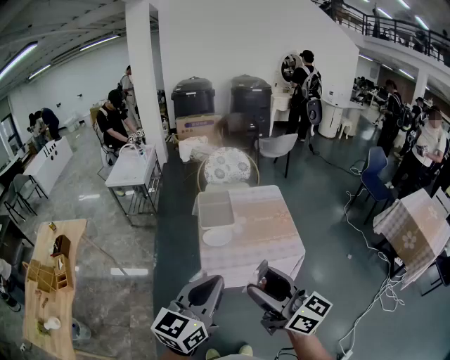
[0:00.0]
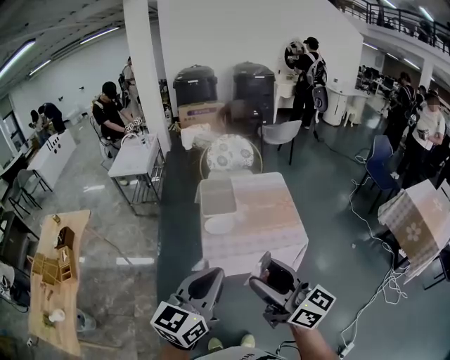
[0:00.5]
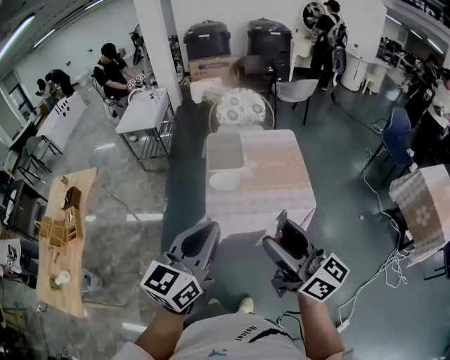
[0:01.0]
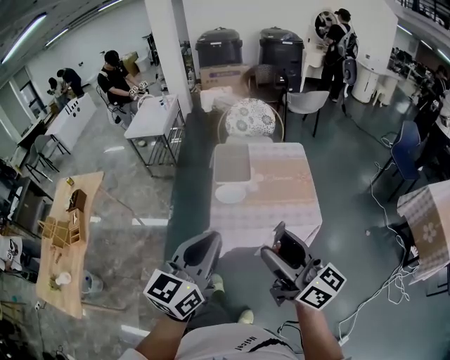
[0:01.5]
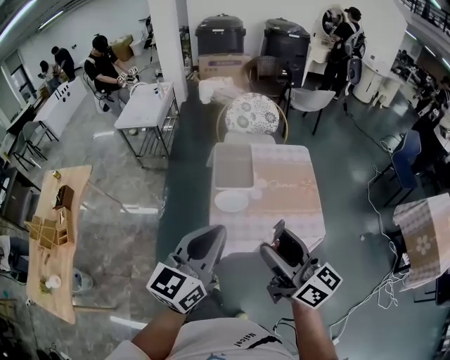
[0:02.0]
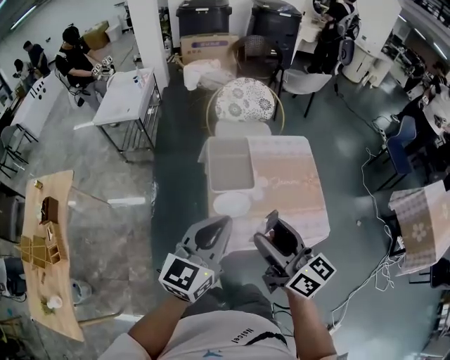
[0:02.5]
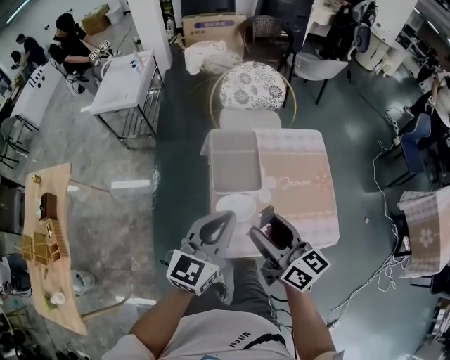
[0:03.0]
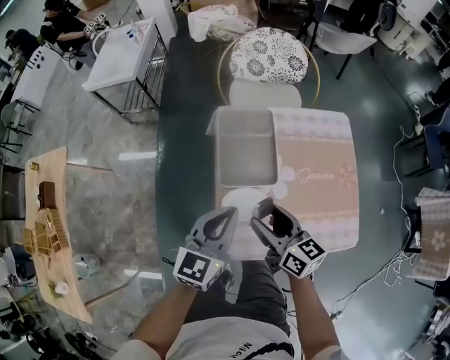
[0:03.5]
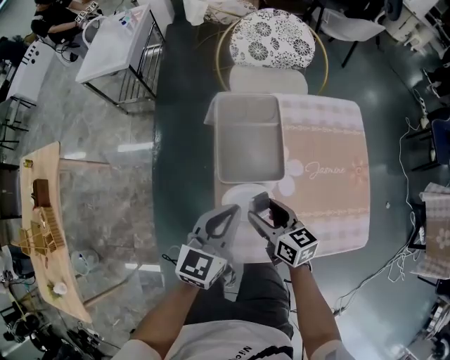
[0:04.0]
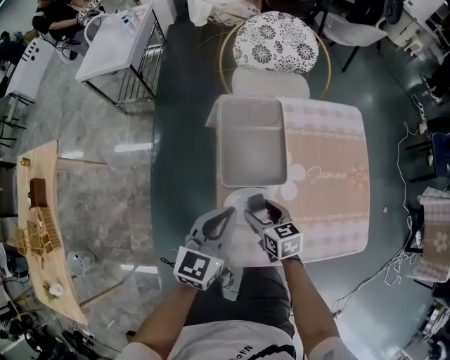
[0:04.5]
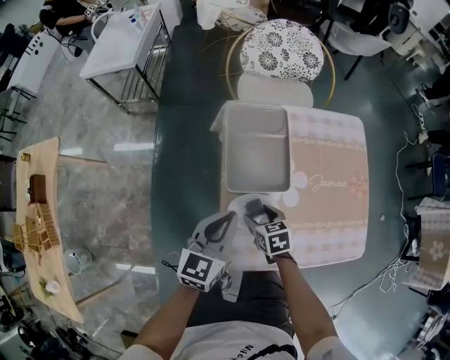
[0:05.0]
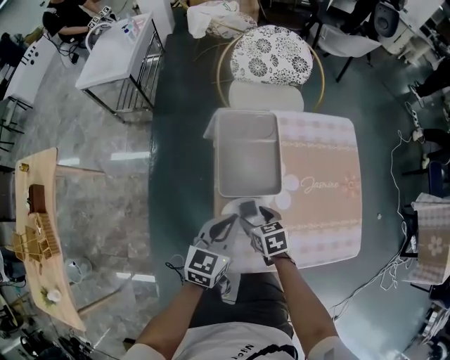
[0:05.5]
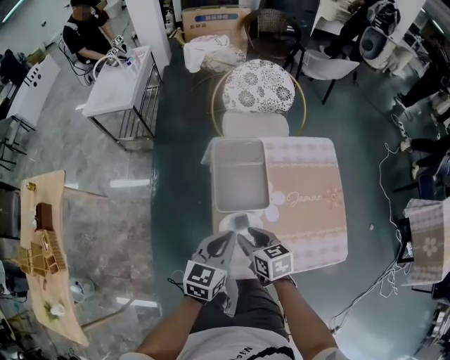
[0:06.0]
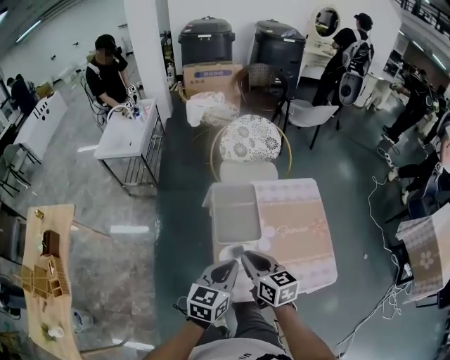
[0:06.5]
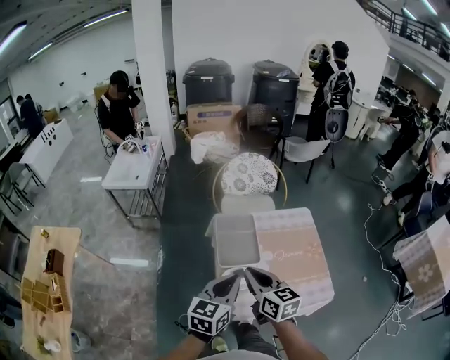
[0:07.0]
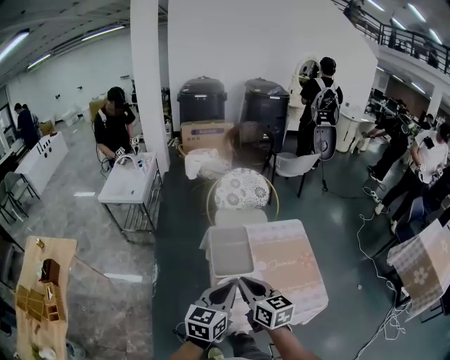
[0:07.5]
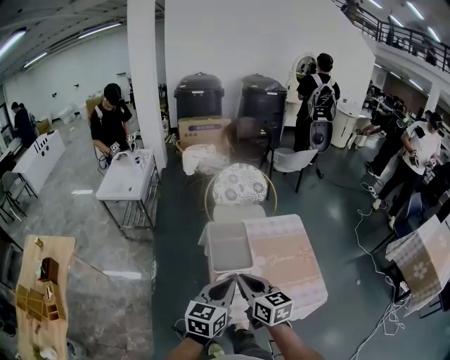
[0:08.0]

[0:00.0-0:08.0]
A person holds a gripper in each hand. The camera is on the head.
0:00.0 to 0:02.0: Both grippers travel together forward, about 15 cm.
0:02.0 to 0:04.0: The grippers both shift downward and forward by approximately 50 cm. The right gripper tilts its fingers approximately 40 degrees downward.
0:04.0 to 0:06.0: The right gripper heads upward, covering roughly 5 cm, and closes its fingers.
0:06.0 to 0:08.0: The right gripper moves upward, approximately 25 cm, turns by roughly 30 degrees, and closes. The left gripper travels upward and backward by about 20 cm.

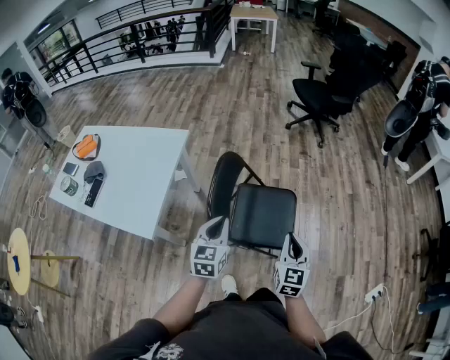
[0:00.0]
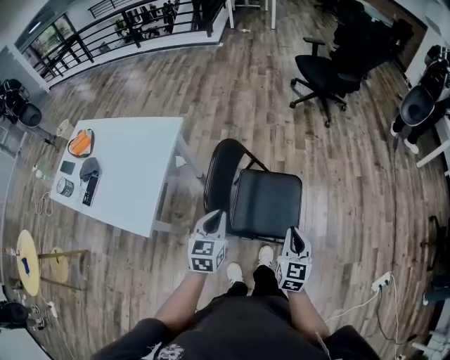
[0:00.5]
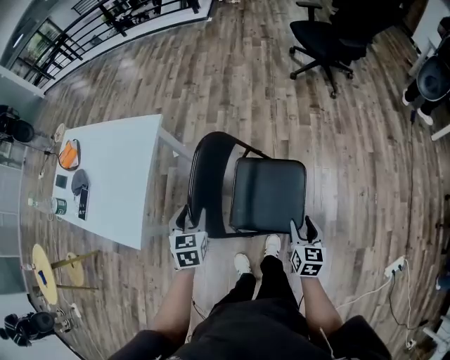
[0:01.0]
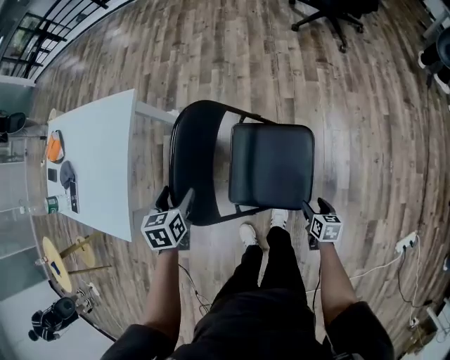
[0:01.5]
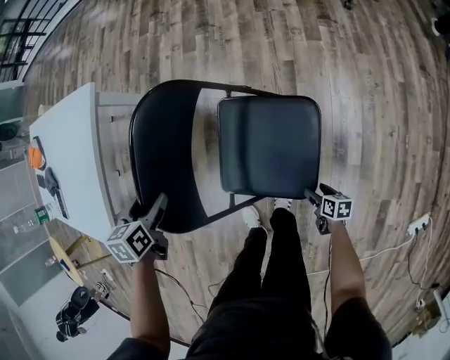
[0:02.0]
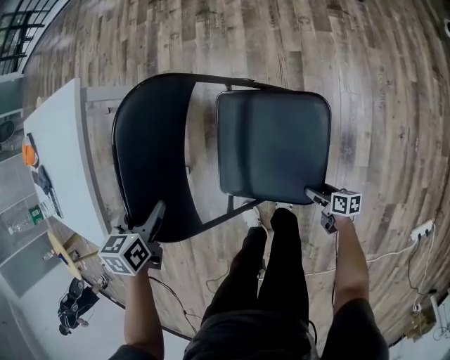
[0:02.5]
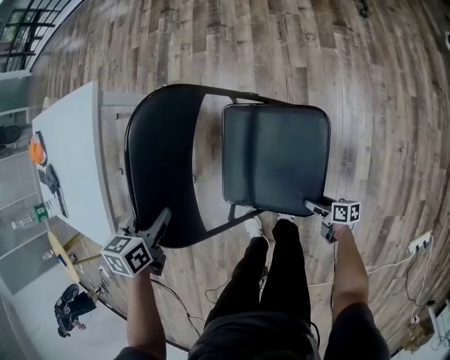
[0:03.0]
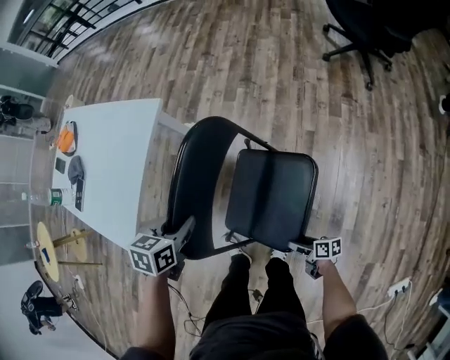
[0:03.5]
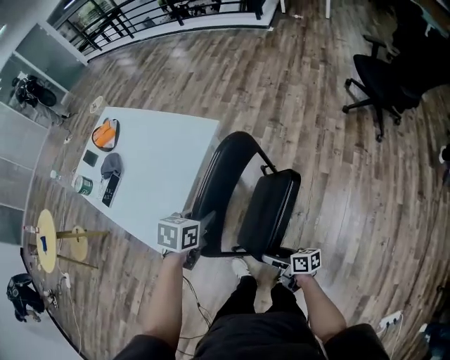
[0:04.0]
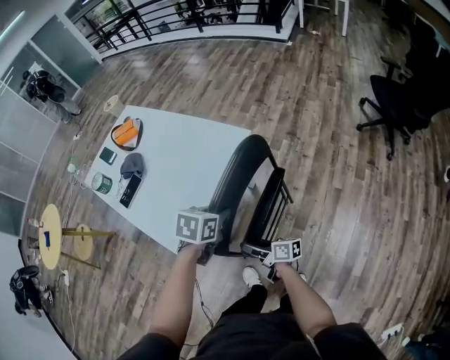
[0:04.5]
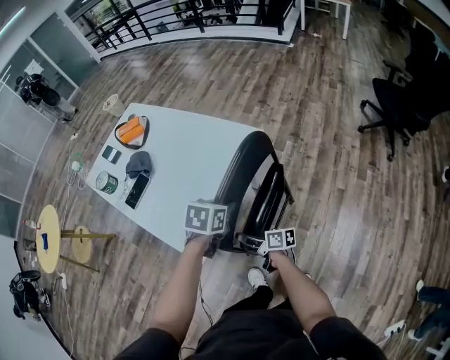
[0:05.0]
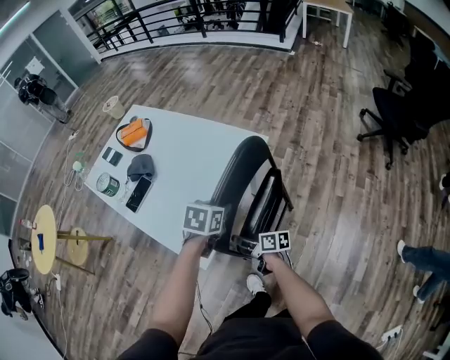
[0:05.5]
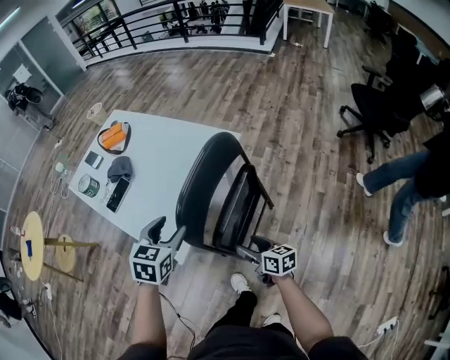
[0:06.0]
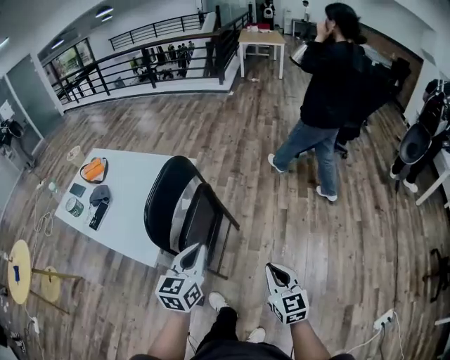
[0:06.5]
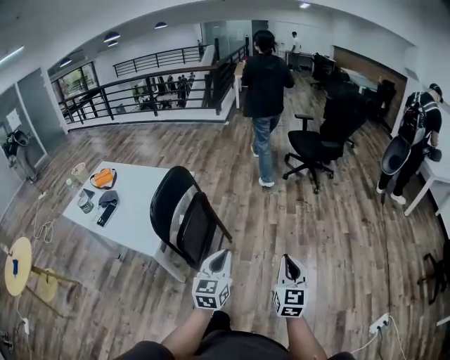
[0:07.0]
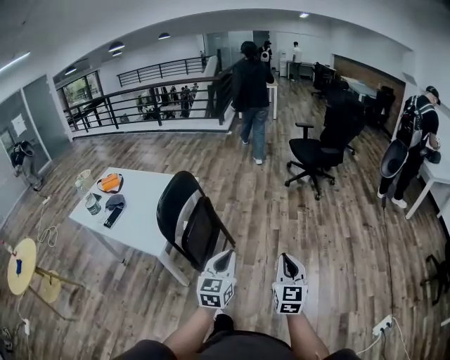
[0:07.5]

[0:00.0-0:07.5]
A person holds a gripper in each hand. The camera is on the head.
0:00.0 to 0:02.0: The left gripper shifts about 25 cm downward, tilts its fingers approximately 40 degrees downward, and opens its fingers, while the right gripper heads downward, covering about 60 cm, angles its fingers downward, by some 40 degrees, and opens its fingers.
0:02.0 to 0:04.0: The right gripper goes roughly 50 cm upward, to the left and forward, and tilts its fingers about 30 degrees upward. The left gripper shifts about 20 cm upward and to the left, and closes up.
0:04.0 to 0:05.5: The left gripper goes some 20 cm to the left and forward. The right gripper heads to the left and forward, covering some 35 cm.
0:05.5 to 0:07.5: The two grippers travel together, approximately 50 cm. The left gripper tips its fingers upward by about 50 degrees, and opens, then closes once more. The right gripper turns by about 90 degrees, and closes.

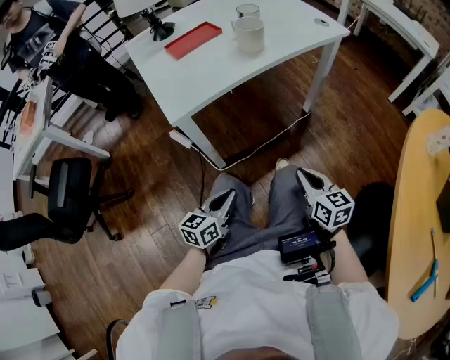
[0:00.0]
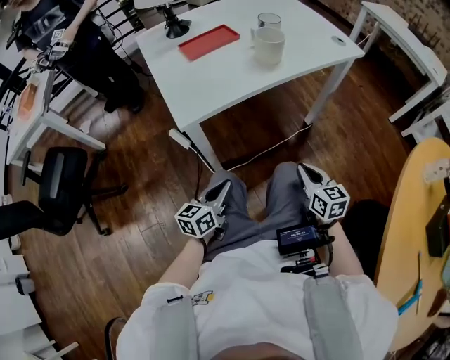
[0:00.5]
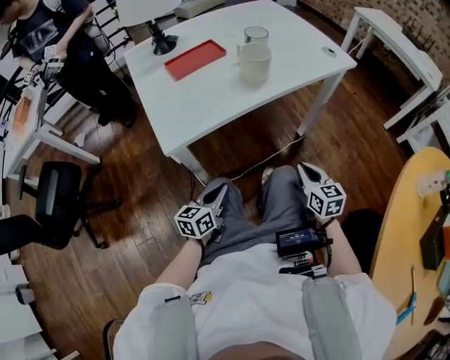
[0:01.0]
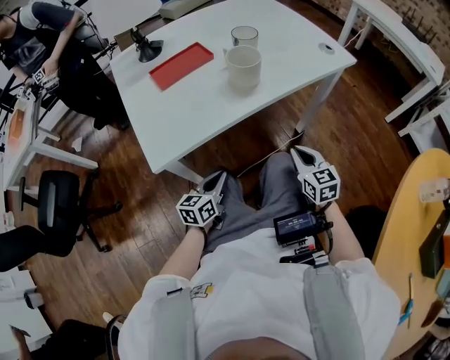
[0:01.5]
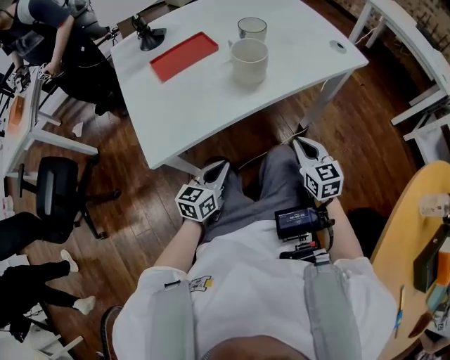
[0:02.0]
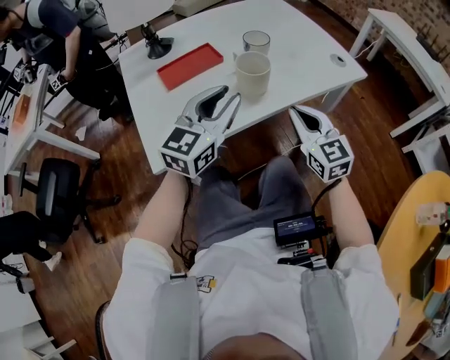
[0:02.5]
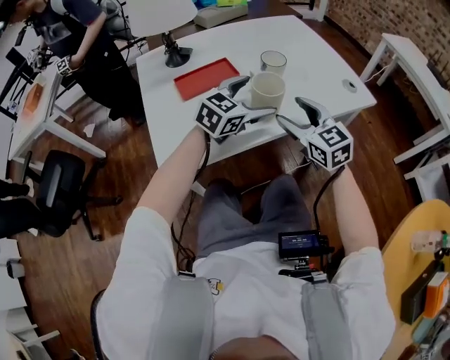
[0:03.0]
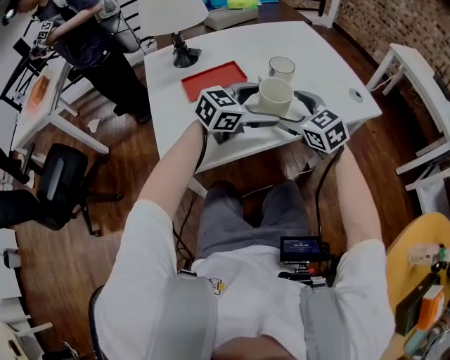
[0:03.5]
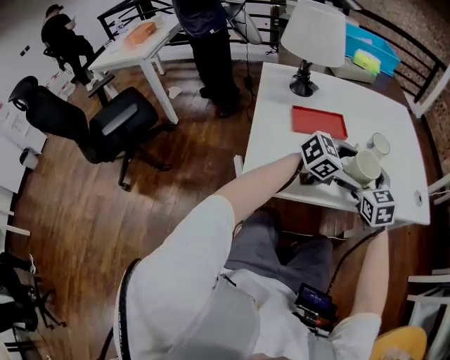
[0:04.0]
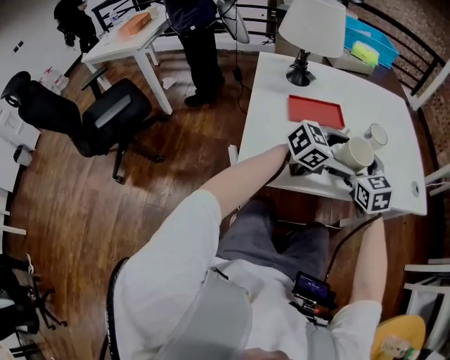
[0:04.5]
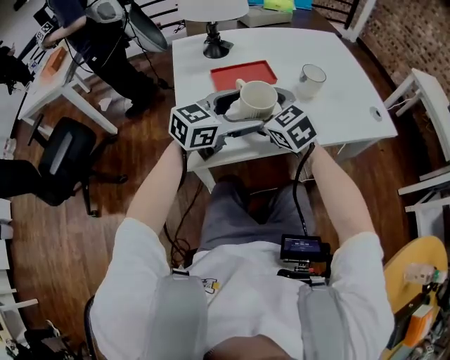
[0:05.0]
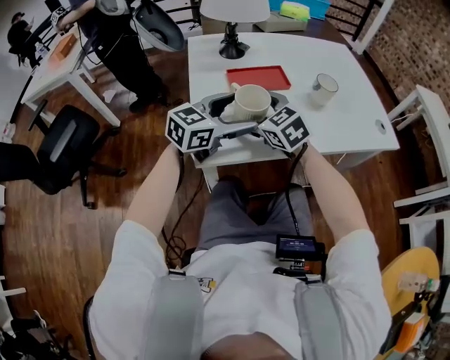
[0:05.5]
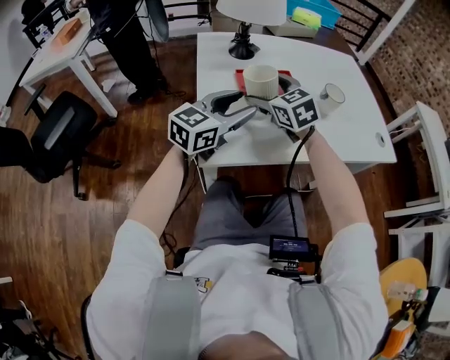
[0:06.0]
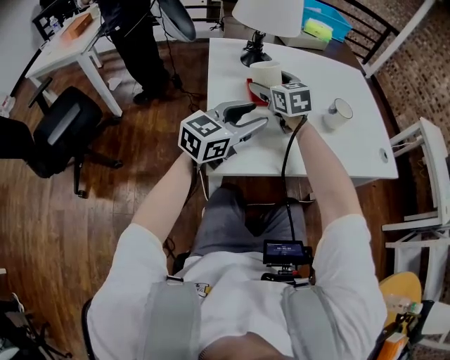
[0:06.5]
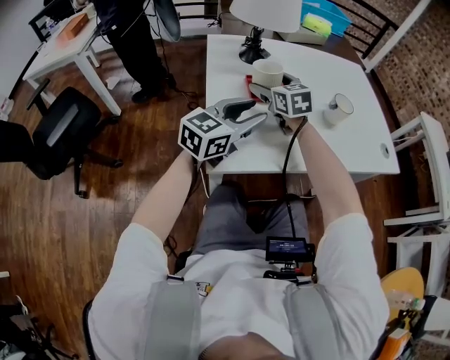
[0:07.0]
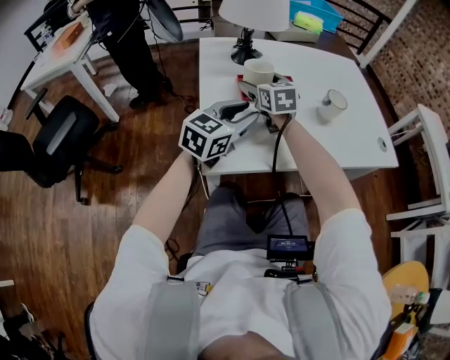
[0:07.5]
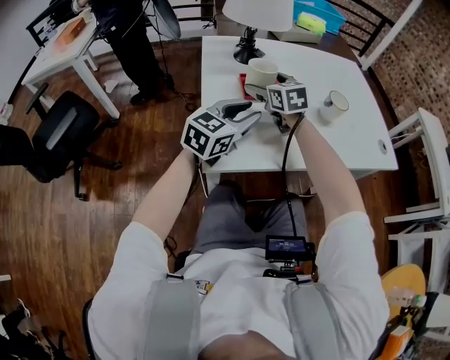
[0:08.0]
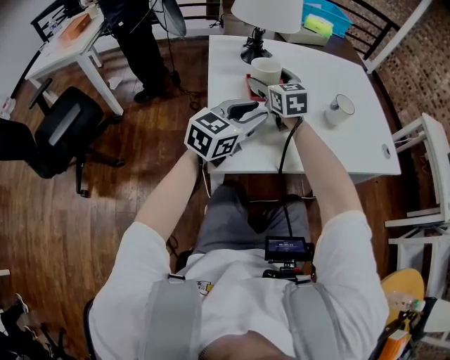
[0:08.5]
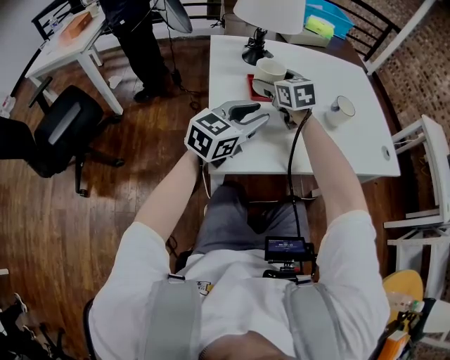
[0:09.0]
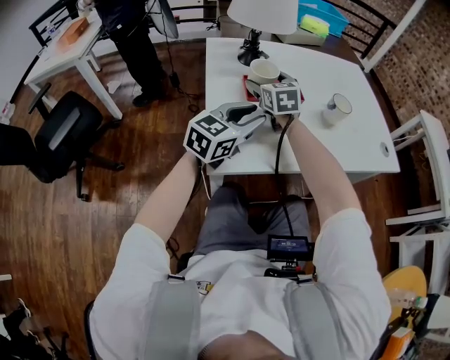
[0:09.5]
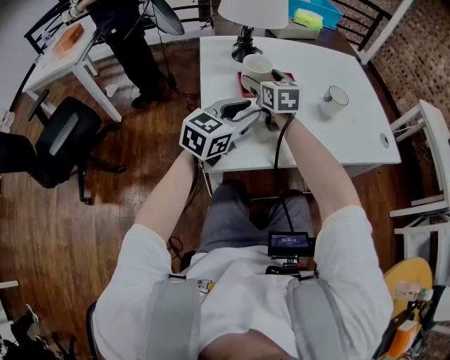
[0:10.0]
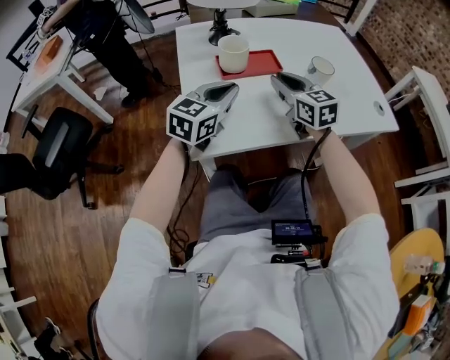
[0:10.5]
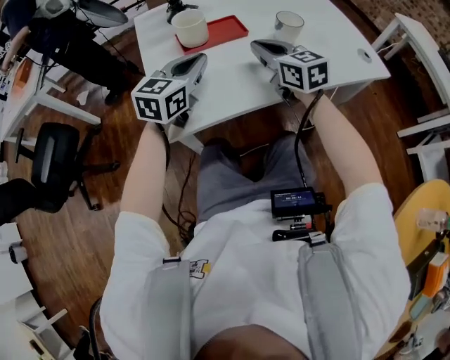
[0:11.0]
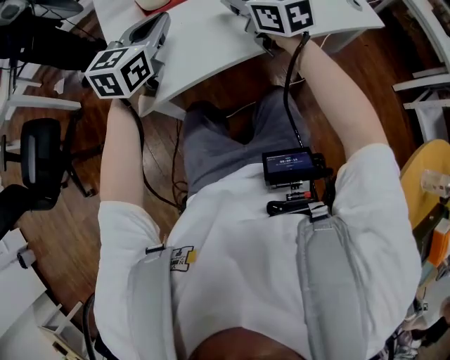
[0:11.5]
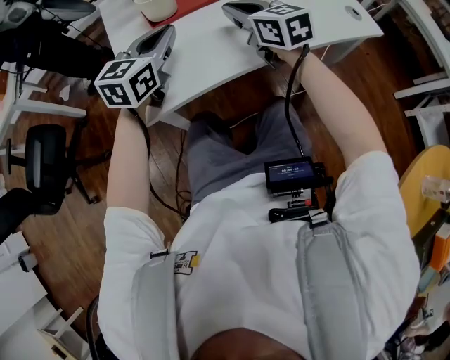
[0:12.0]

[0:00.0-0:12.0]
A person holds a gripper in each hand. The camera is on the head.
0:00.0 to 0:02.0: Both grippers move forward, some 25 cm.
0:02.0 to 0:04.0: The left gripper goes some 30 cm forward and upward, swivels roughly 40 degrees, and opens its fingers. The right gripper goes some 25 cm forward, to the left and upward, changes its angle by some 30 degrees, and opens its fingers.
0:04.0 to 0:06.0: The two grippers go roughly 20 cm to the left. The left gripper changes its angle by approximately 30 degrees, and closes up.
0:06.0 to 0:08.0: The right gripper goes roughly 10 cm forward.
0:08.0 to 0:10.0: The grippers move only a little.
0:10.0 to 0:12.0: The right gripper moves to the right and backward, some 15 cm, and closes up.
